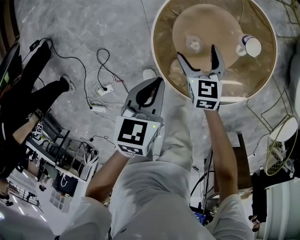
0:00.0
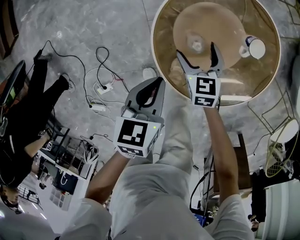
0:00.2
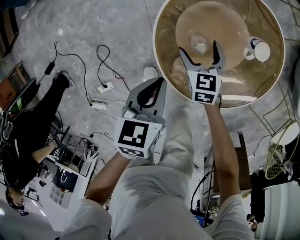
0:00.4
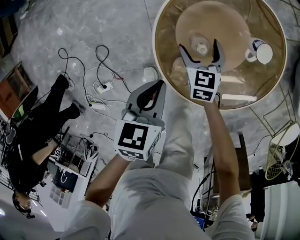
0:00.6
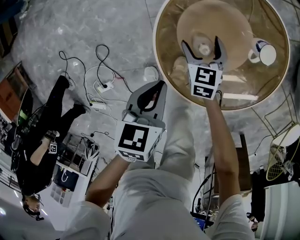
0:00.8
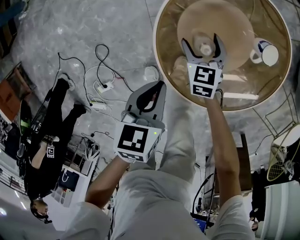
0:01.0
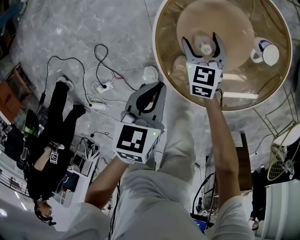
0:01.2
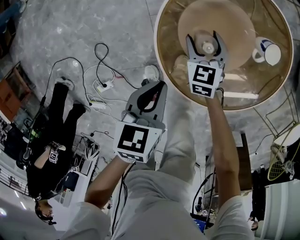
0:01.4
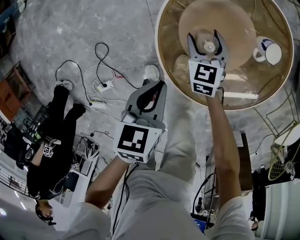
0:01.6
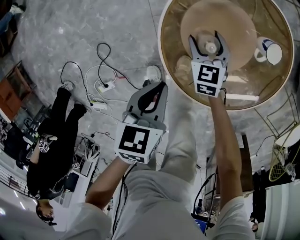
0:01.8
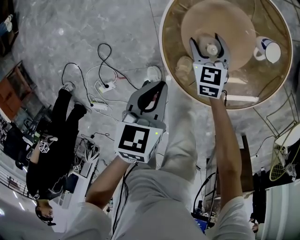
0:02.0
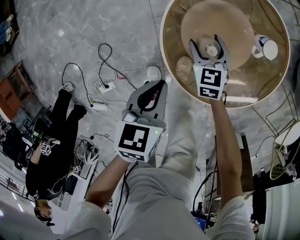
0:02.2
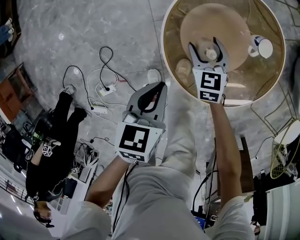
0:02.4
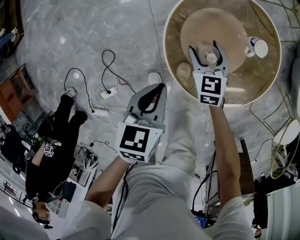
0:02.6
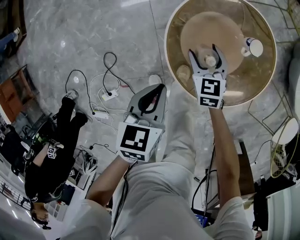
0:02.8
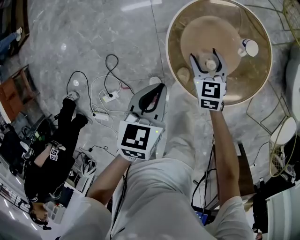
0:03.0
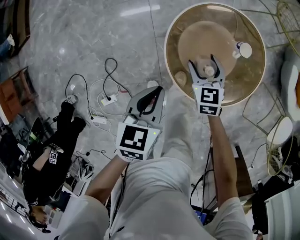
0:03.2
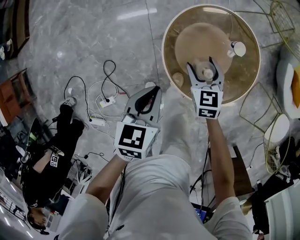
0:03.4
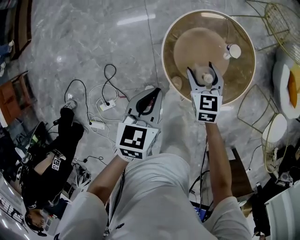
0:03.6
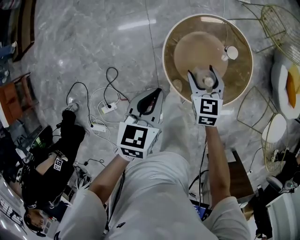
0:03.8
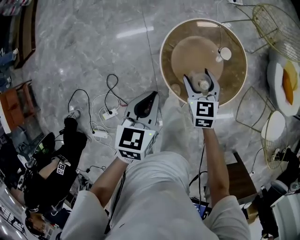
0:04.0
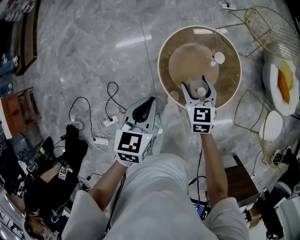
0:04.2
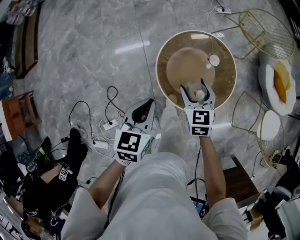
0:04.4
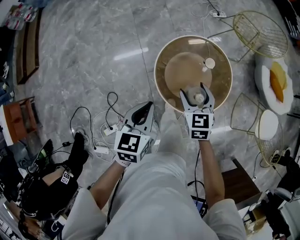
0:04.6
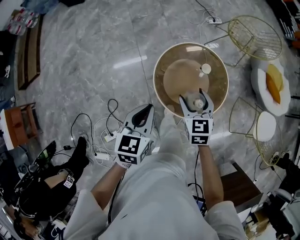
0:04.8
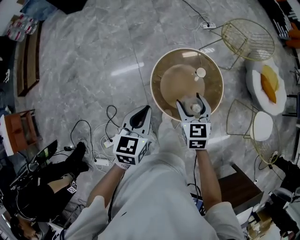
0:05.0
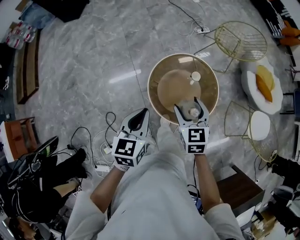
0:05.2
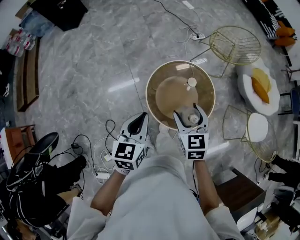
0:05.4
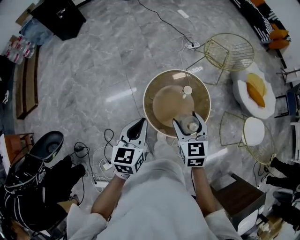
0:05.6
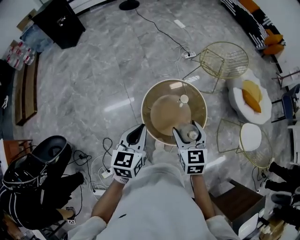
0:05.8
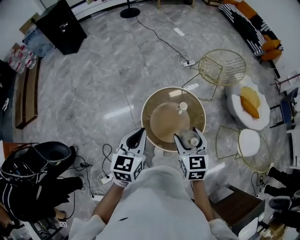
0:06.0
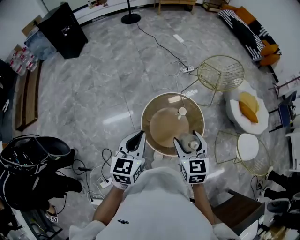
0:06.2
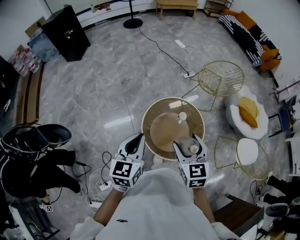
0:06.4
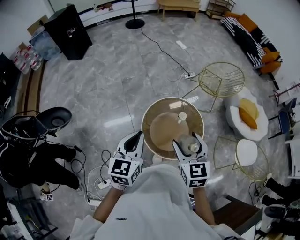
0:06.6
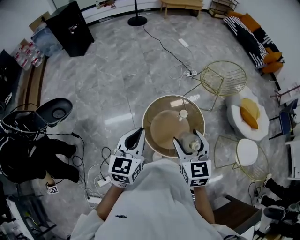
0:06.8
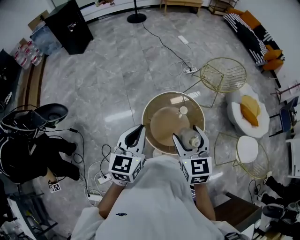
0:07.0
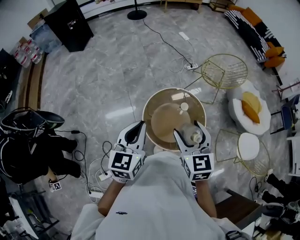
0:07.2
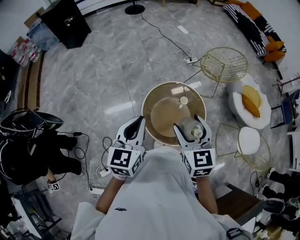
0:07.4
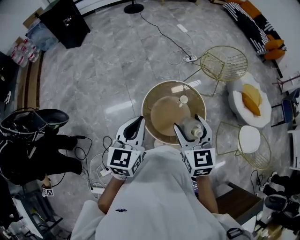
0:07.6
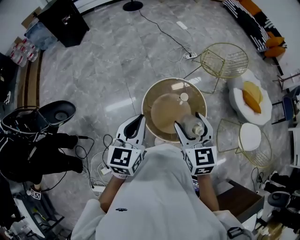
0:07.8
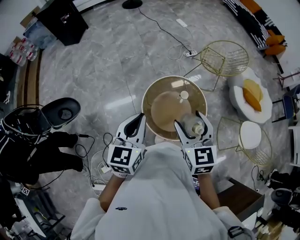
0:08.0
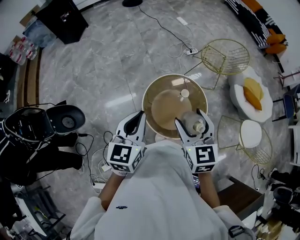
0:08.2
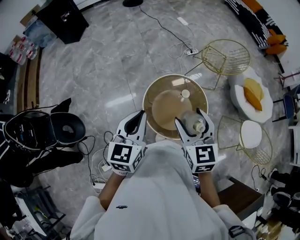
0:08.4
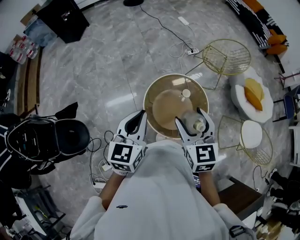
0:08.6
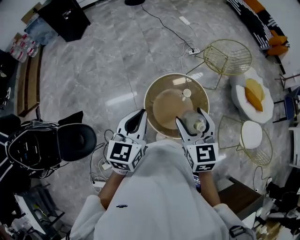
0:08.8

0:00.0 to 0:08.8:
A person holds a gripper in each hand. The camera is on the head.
0:00.0 to 0:01.4: Both grippers move downward, about 5 cm.
0:01.4 to 0:03.0: Both grippers move upward, about 15 cm.
0:03.0 to 0:04.4: Both grippers move upward, approximately 20 cm.
0:04.4 to 0:05.8: The two grippers go approximately 15 cm upward.
0:05.8 to 0:07.4: The grippers both shift upward by some 10 cm.
0:07.4 to 0:08.8: The right gripper changes place by approximately 5 cm. The left gripper ends up about 5 cm from where it was.

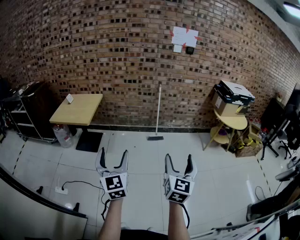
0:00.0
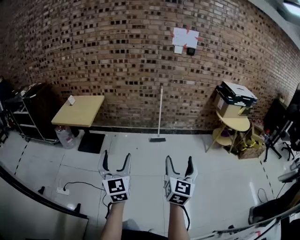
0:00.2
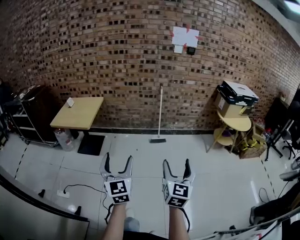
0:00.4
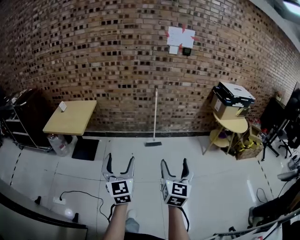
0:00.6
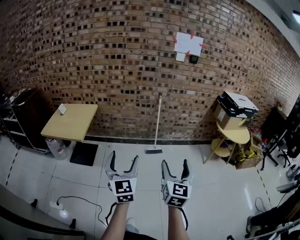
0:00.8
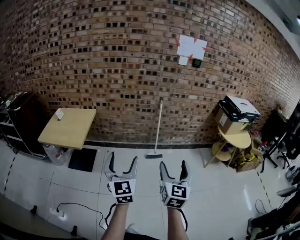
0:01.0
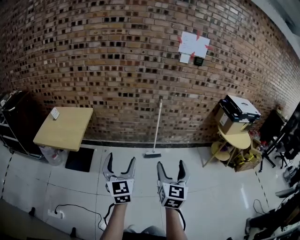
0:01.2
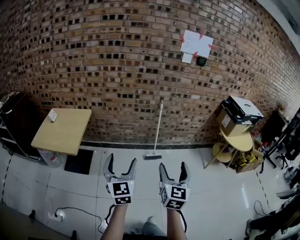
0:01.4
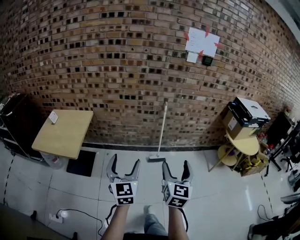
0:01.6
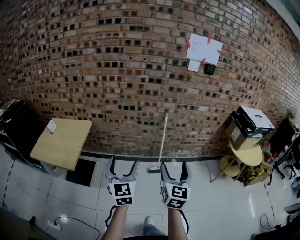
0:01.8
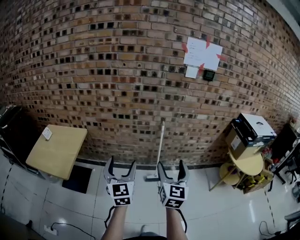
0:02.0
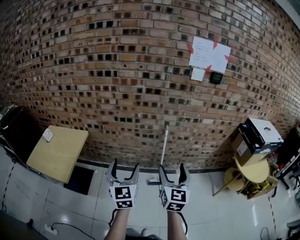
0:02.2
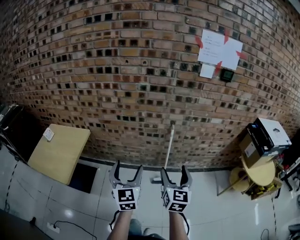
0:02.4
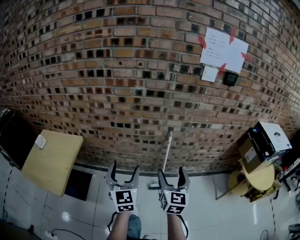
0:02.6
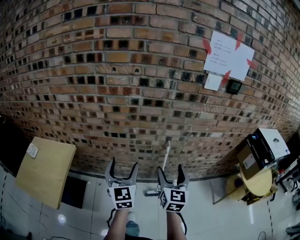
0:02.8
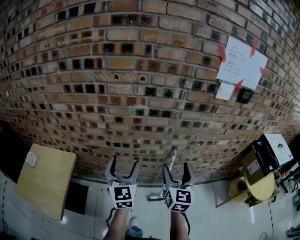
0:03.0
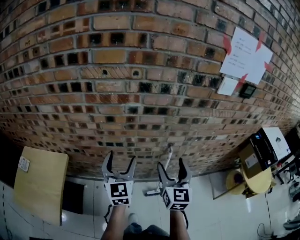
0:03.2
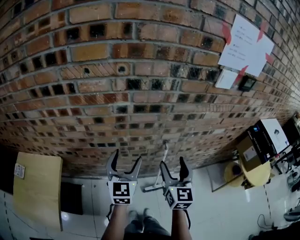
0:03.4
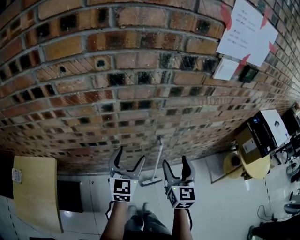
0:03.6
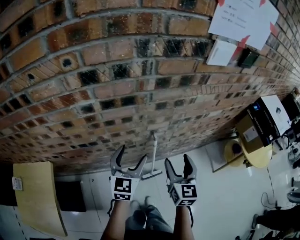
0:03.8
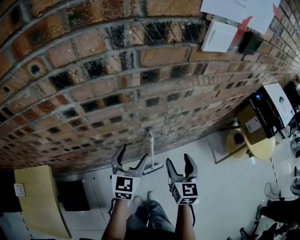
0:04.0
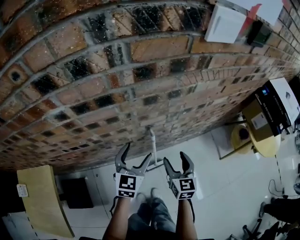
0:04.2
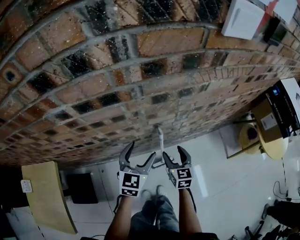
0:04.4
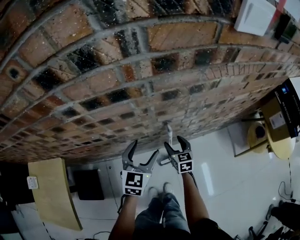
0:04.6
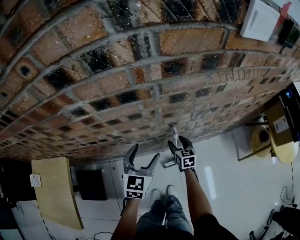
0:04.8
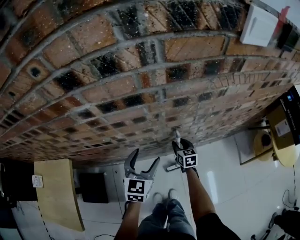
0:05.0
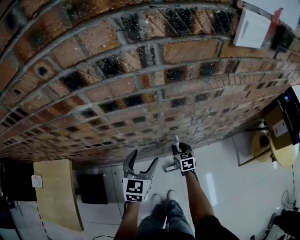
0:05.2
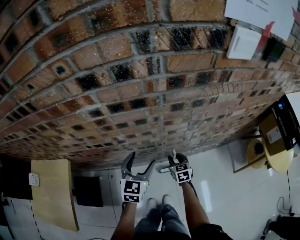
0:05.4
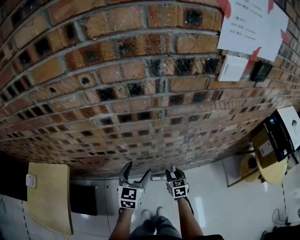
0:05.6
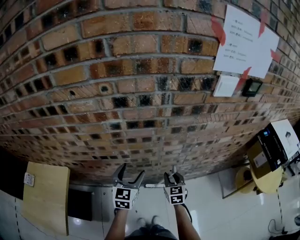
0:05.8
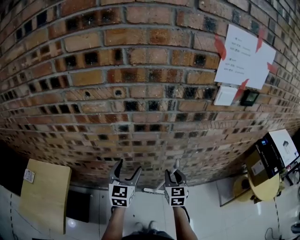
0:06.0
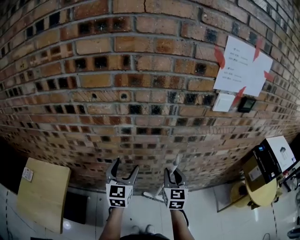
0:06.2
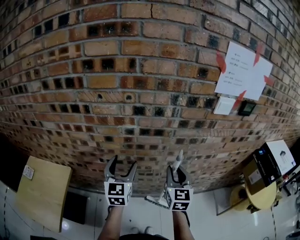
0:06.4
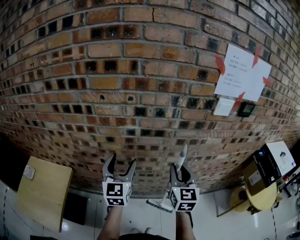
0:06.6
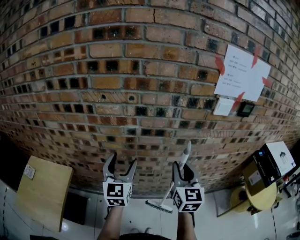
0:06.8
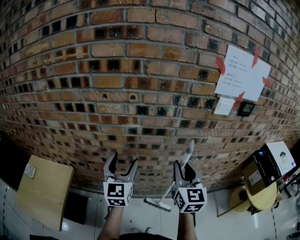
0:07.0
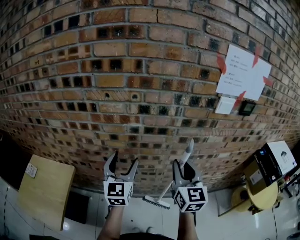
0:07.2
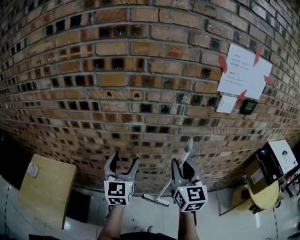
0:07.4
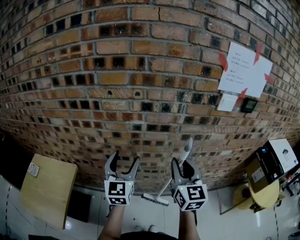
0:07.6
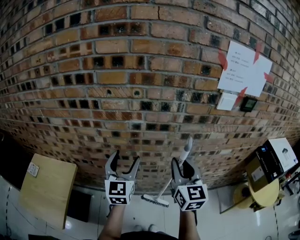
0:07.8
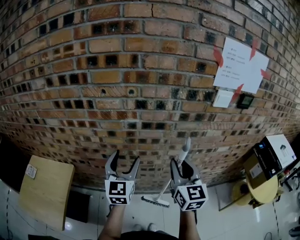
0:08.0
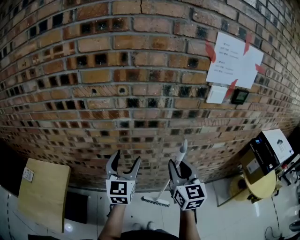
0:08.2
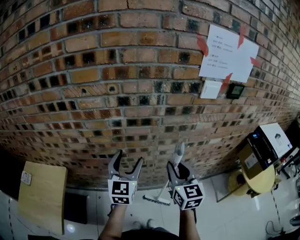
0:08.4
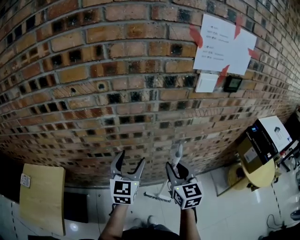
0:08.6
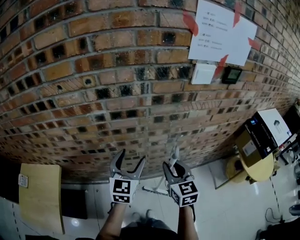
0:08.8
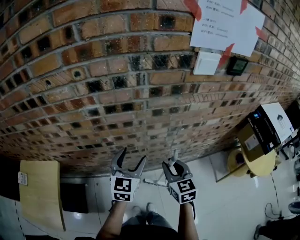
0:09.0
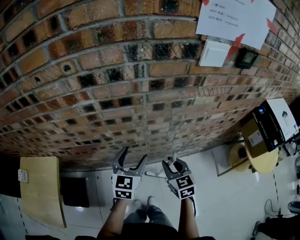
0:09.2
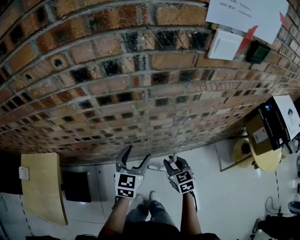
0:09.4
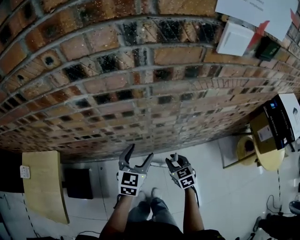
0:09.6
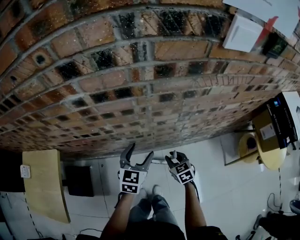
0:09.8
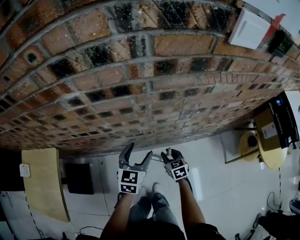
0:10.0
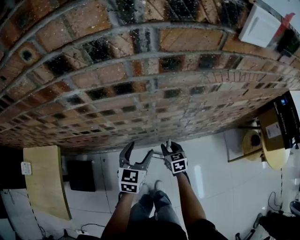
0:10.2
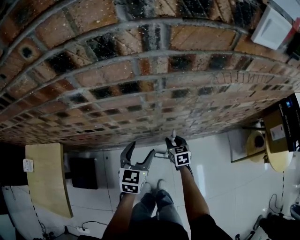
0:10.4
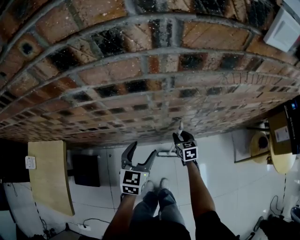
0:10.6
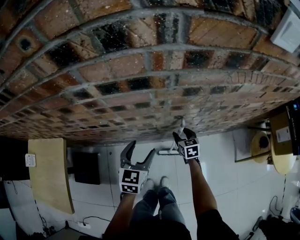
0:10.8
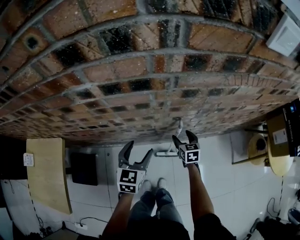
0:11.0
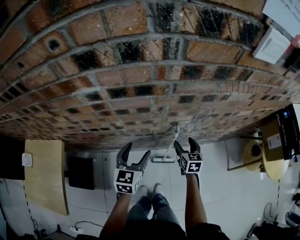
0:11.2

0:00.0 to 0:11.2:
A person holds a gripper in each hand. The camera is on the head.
0:00.0 to 0:01.6: The two grippers travel together, forward, some 40 cm.
0:01.6 to 0:03.2: The two grippers travel together, forward, about 60 cm.
0:03.2 to 0:04.8: The left gripper is displaced downward, forward and to the right by approximately 30 cm, and rotates about 30 degrees; the right gripper travels downward and forward by approximately 40 cm, and points its fingers about 30 degrees further downward.
0:04.8 to 0:06.4: The left gripper travels upward and to the left by roughly 25 cm, and swivels roughly 30 degrees; the right gripper shifts about 40 cm upward, changes its angle by about 30 degrees, and closes.
0:06.4 to 0:08.0: The right gripper heads upward, covering about 5 cm.
0:08.0 to 0:09.6: The left gripper travels downward and to the right by about 30 cm, and turns by roughly 30 degrees. Meanwhile the right gripper travels downward by approximately 40 cm, and angles its fingers downward, by roughly 40 degrees.
0:09.6 to 0:11.2: The left gripper travels to the left by some 5 cm. Meanwhile the right gripper is displaced forward by about 10 cm, rotates approximately 20 degrees, and opens up.

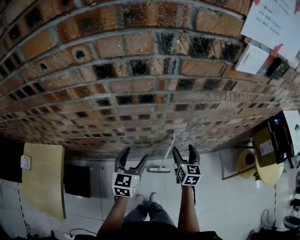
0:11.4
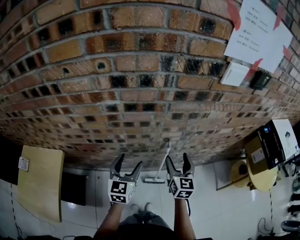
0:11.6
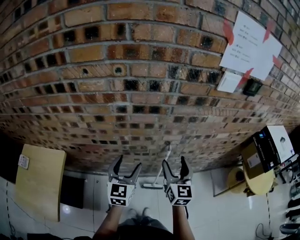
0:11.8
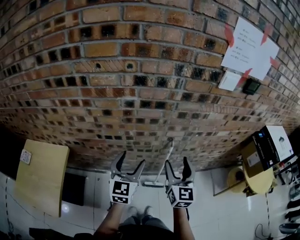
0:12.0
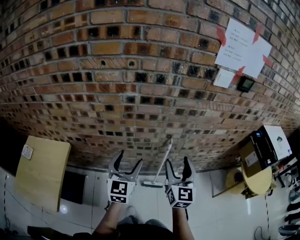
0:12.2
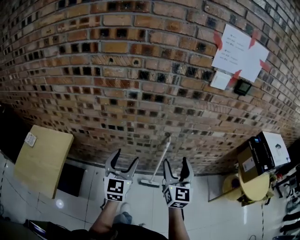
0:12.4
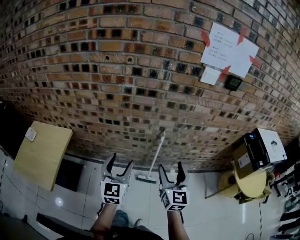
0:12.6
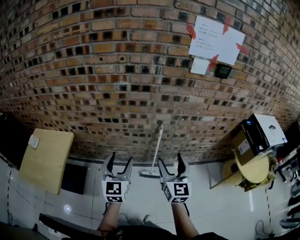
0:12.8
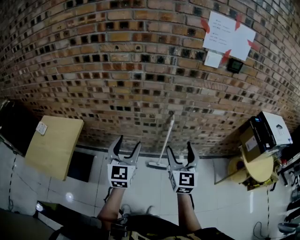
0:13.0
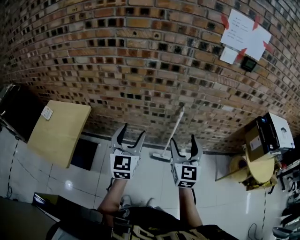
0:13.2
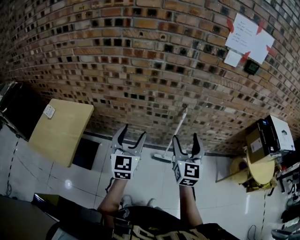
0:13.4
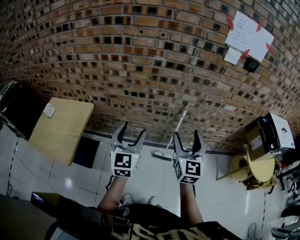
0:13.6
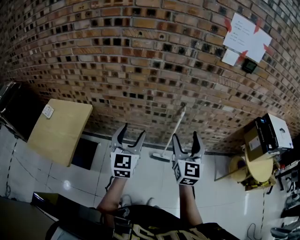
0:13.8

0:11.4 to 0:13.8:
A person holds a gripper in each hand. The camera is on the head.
0:11.4 to 0:12.6: Both grippers move backward and upward, about 30 cm. The left gripper changes its angle by some 20 degrees. Meanwhile the right gripper swivels roughly 20 degrees.
0:12.6 to 0:13.8: The two grippers go roughly 10 cm to the left and backward.

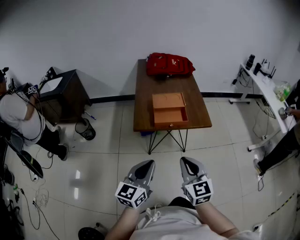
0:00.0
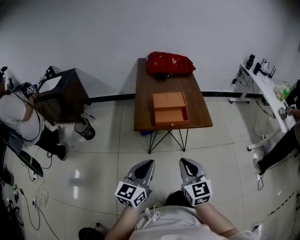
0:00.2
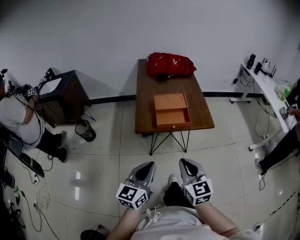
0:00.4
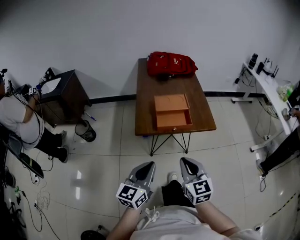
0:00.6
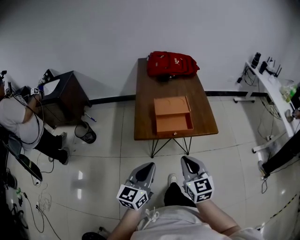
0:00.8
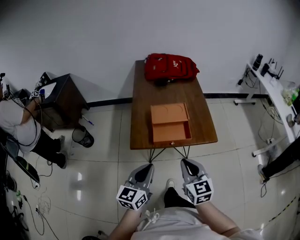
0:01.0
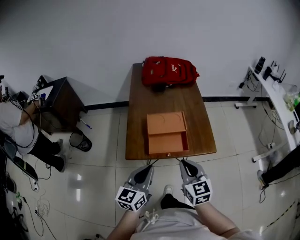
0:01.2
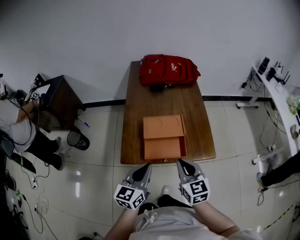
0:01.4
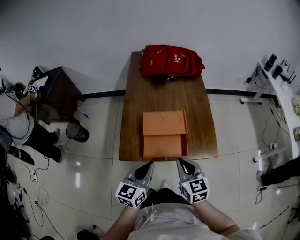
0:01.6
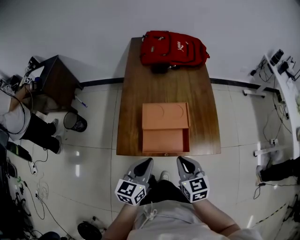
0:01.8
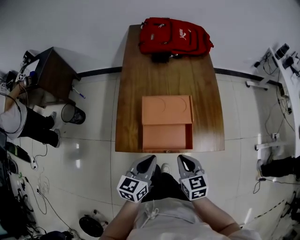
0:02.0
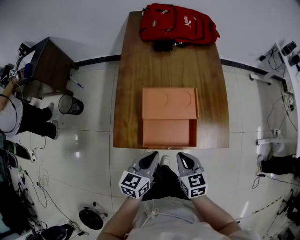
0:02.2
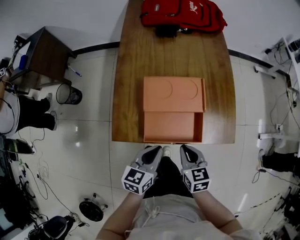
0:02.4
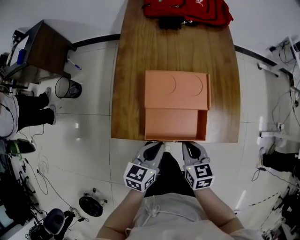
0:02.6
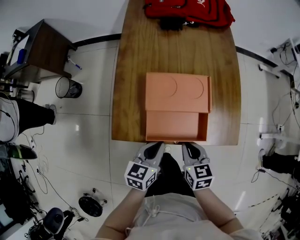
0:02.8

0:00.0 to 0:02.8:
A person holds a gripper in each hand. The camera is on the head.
0:00.0 to 0:01.4: Both grippers travel together forward, some 25 cm.
0:01.4 to 0:02.8: Both grippers travel together downward, some 20 cm. The right gripper swivels roughly 30 degrees, while the left gripper swivels approximately 30 degrees.
